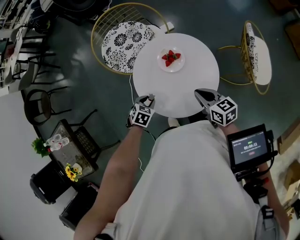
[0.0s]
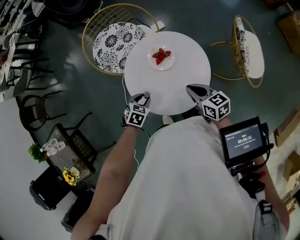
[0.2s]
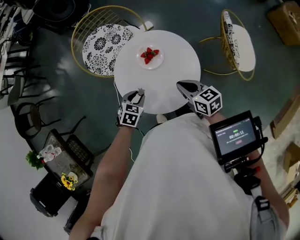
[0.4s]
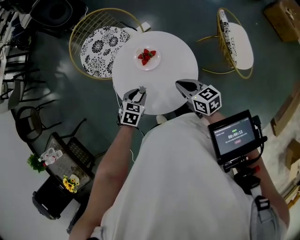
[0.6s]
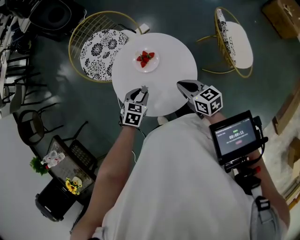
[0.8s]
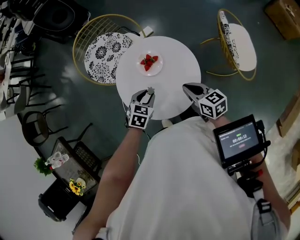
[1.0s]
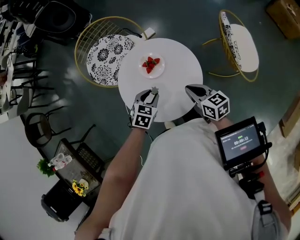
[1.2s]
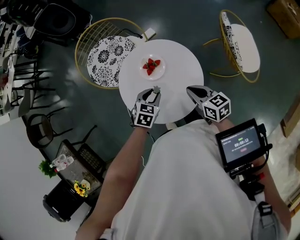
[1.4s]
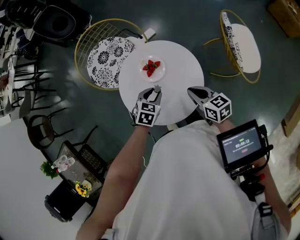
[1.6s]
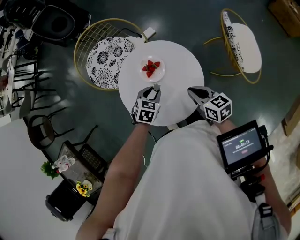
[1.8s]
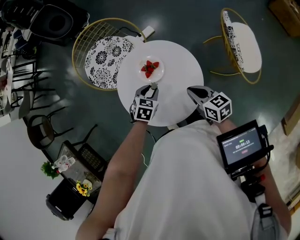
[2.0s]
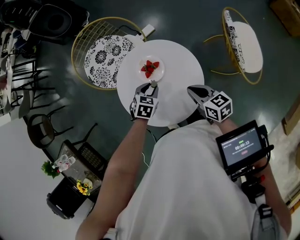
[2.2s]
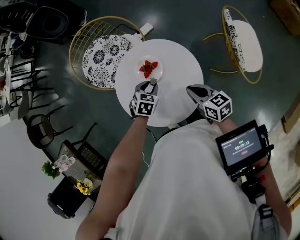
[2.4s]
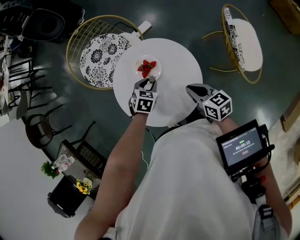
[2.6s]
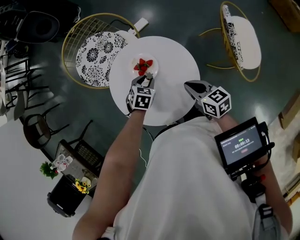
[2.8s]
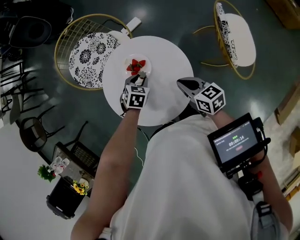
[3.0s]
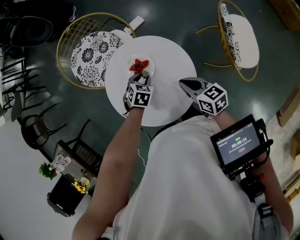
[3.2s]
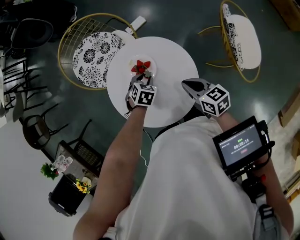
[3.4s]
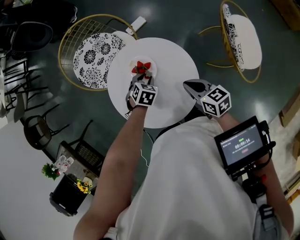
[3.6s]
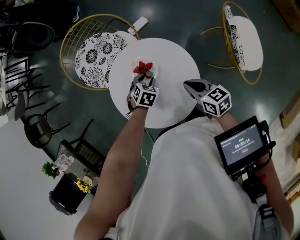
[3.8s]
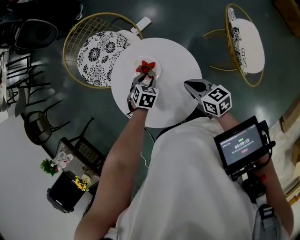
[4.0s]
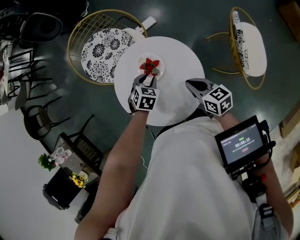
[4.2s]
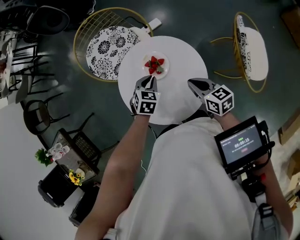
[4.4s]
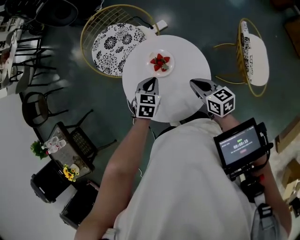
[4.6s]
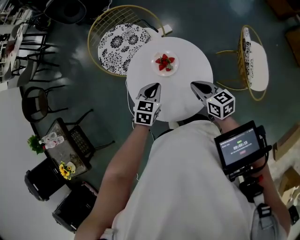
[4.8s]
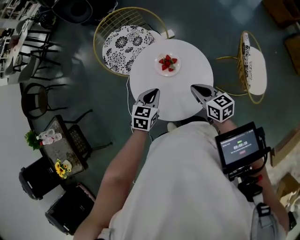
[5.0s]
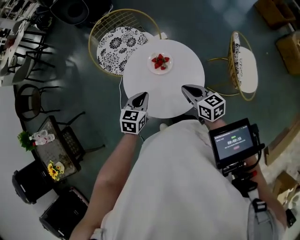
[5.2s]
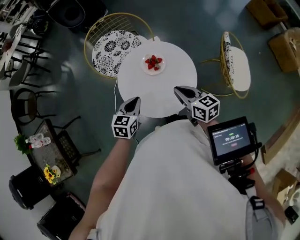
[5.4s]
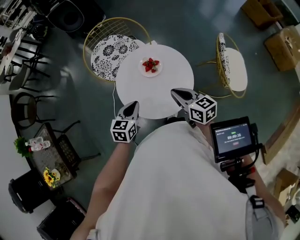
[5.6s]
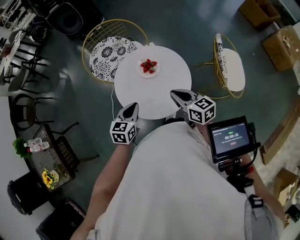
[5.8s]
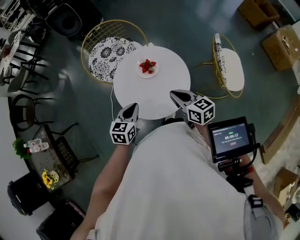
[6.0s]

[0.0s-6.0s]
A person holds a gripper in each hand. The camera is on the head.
0.0s to 1.6s: The left gripper travels to the right, forward and upward by about 15 cm.
1.6s to 3.0s: The left gripper is displaced forward and downward by roughly 10 cm; the right gripper shifts by about 5 cm.
3.0s to 4.4s: The left gripper is displaced upward by approximately 5 cm, and closes its fingers.
4.4s to 6.0s: The right gripper moves upward, backward and to the left, about 15 cm. The left gripper shifts about 20 cm backward, upward and to the left, and changes its angle by about 30 degrees.

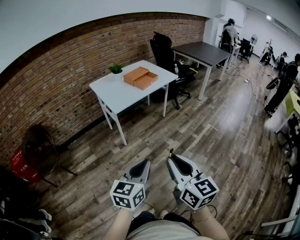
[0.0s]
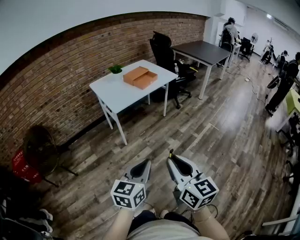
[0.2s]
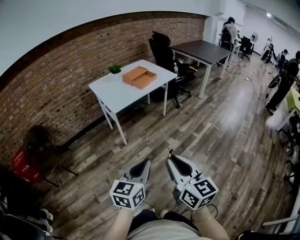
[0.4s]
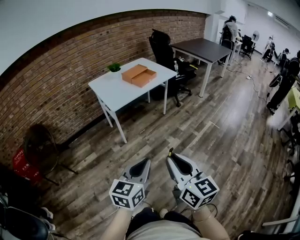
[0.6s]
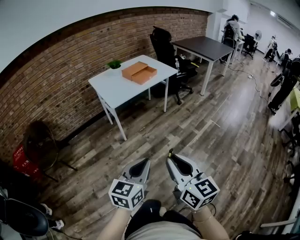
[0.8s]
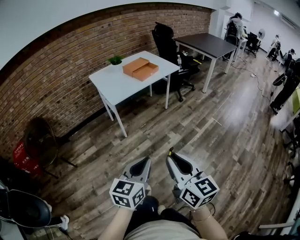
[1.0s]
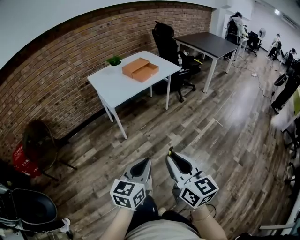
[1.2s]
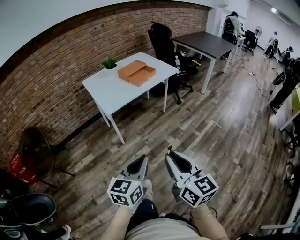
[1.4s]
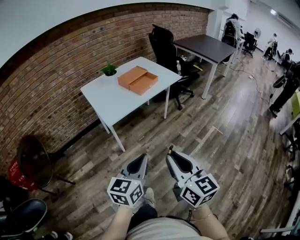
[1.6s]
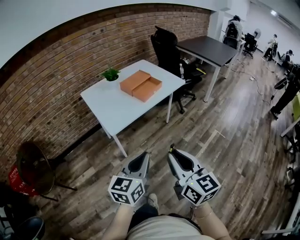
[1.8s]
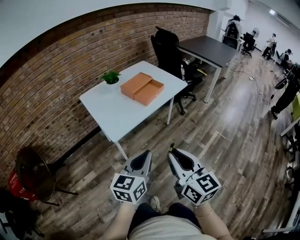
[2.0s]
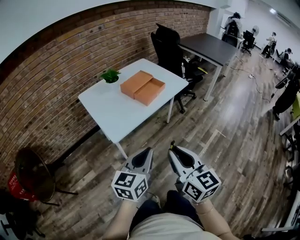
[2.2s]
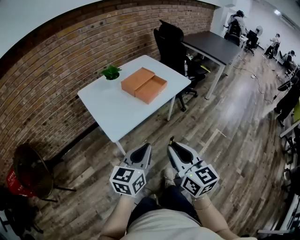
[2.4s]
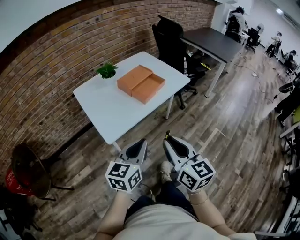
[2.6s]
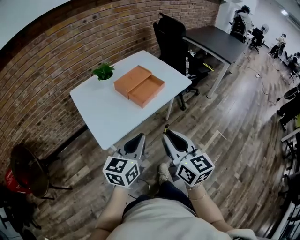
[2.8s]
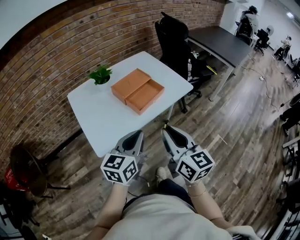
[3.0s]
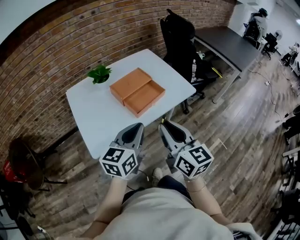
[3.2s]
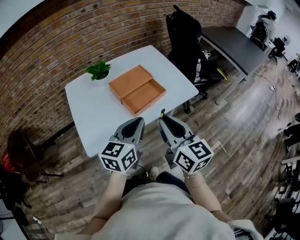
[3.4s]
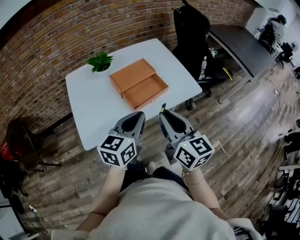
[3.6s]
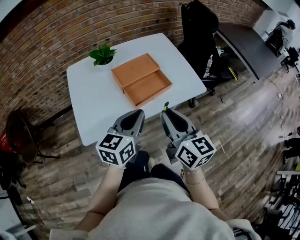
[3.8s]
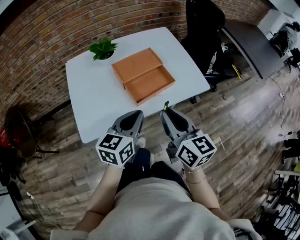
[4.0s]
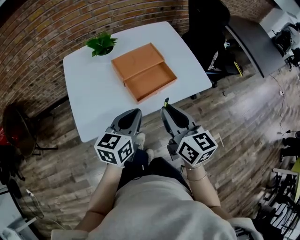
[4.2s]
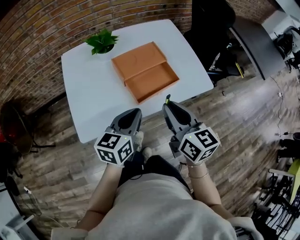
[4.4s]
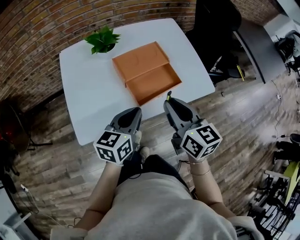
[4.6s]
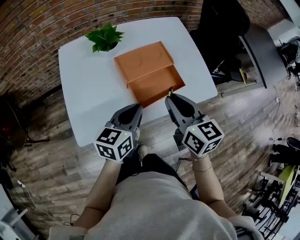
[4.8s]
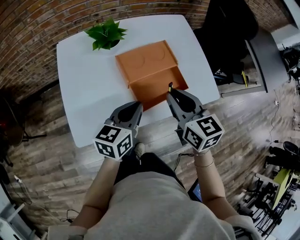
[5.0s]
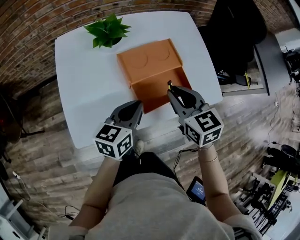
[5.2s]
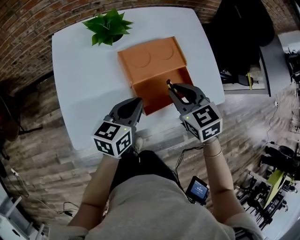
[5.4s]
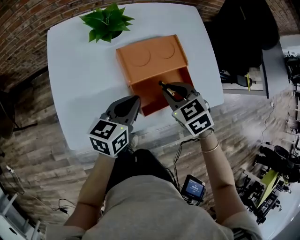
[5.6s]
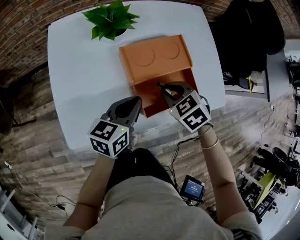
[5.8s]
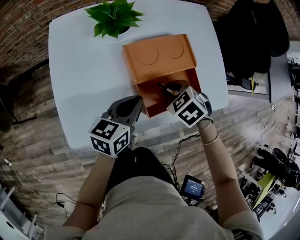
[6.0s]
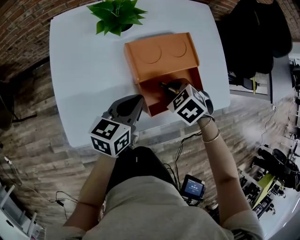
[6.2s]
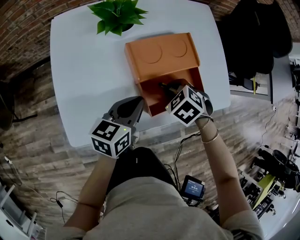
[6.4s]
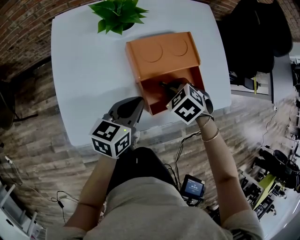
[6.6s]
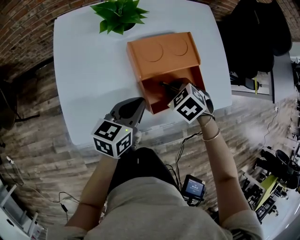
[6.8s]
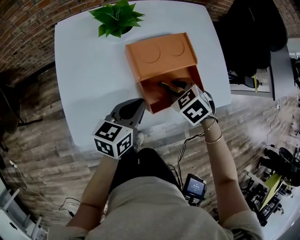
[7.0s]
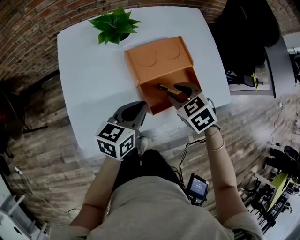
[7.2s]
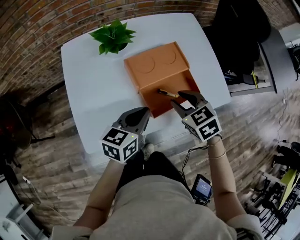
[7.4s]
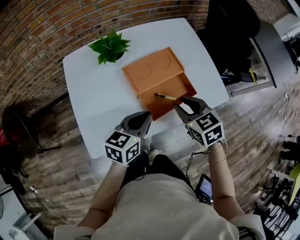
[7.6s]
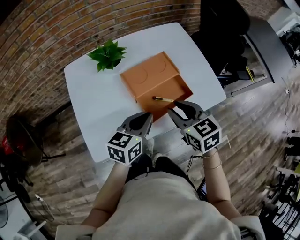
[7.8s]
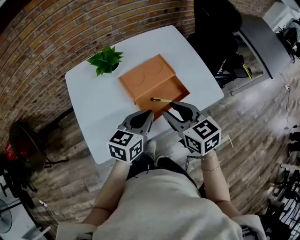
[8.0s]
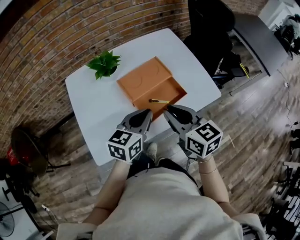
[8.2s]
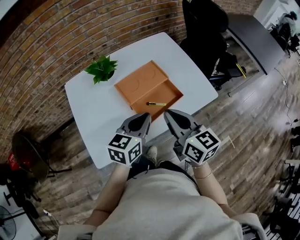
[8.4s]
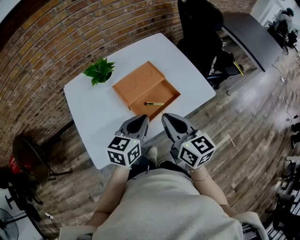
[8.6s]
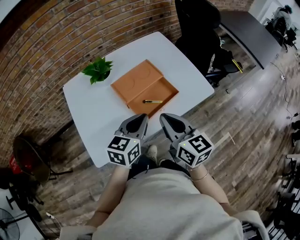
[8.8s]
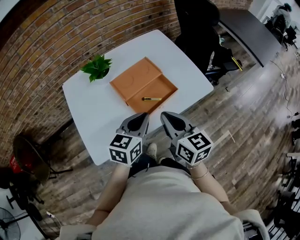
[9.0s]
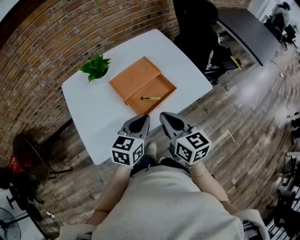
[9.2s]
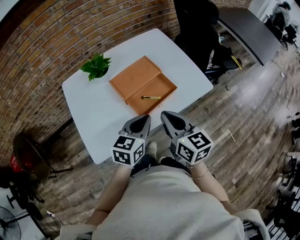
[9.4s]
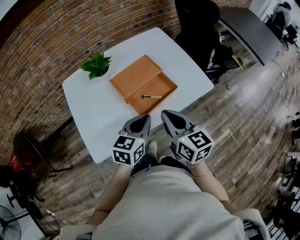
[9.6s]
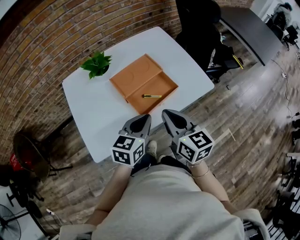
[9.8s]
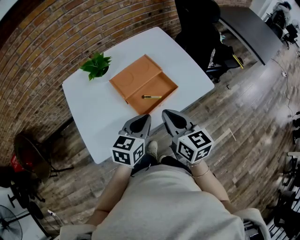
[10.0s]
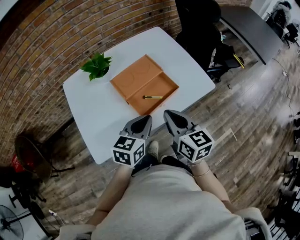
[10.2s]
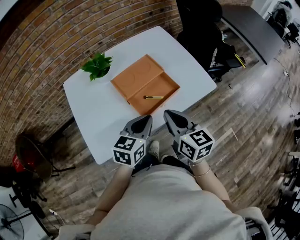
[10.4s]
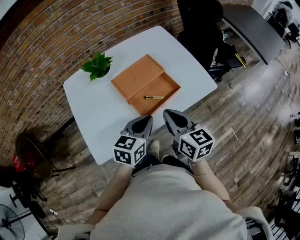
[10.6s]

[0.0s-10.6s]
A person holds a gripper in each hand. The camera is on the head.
0.0s to 1.6s: The grippers both shift forward by approximately 20 cm.
1.6s to 3.0s: The two grippers go roughly 40 cm forward.
3.0s to 4.6s: The left gripper goes some 20 cm forward and downward, while the right gripper travels forward by approximately 20 cm, and changes its angle by about 20 degrees.
4.6s to 6.0s: The left gripper travels forward and downward by approximately 15 cm. The right gripper heads downward and forward, covering about 25 cm, and tips its fingers downward by about 50 degrees.
6.0s to 7.6s: The left gripper shifts roughly 5 cm upward, while the right gripper travels upward by approximately 10 cm, and turns by about 40 degrees.
7.6s to 9.0s: The left gripper travels to the right by some 5 cm; the right gripper is displaced backward and upward by approximately 10 cm, swivels about 40 degrees, and closes.
9.0s to 10.6s: The grippers move only a little.

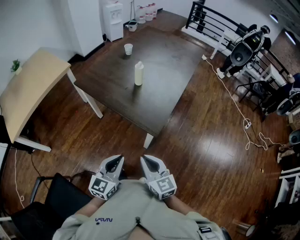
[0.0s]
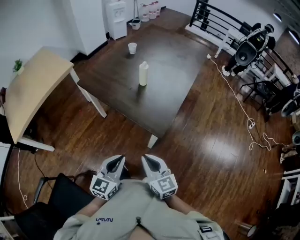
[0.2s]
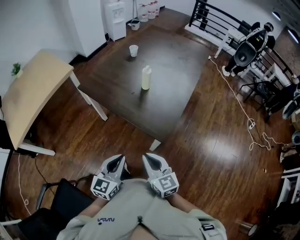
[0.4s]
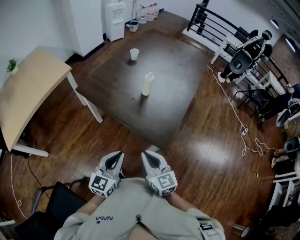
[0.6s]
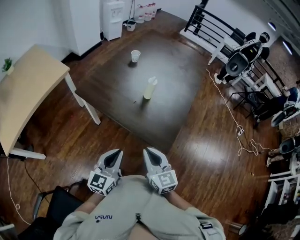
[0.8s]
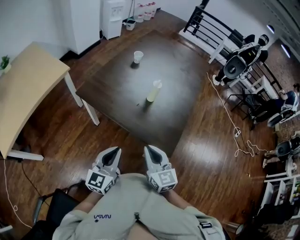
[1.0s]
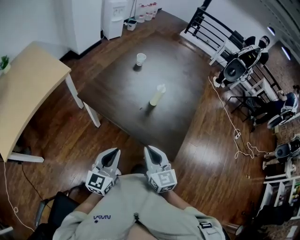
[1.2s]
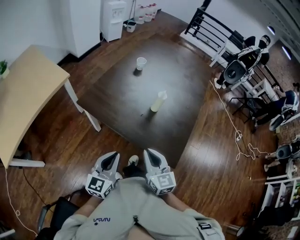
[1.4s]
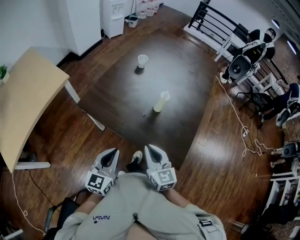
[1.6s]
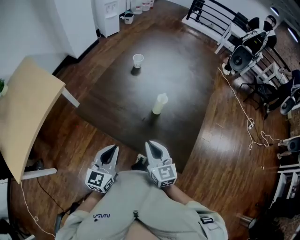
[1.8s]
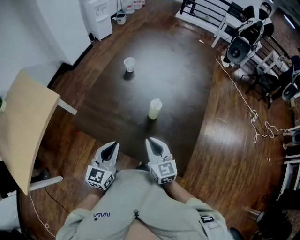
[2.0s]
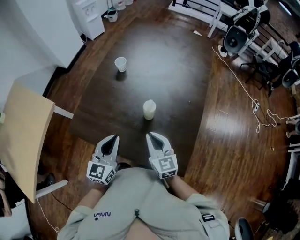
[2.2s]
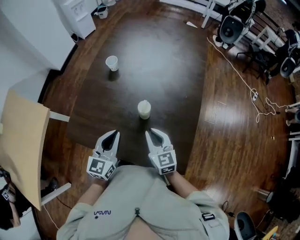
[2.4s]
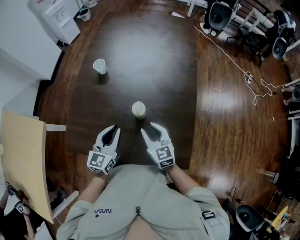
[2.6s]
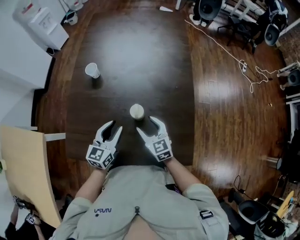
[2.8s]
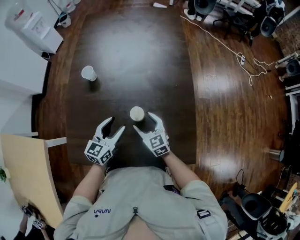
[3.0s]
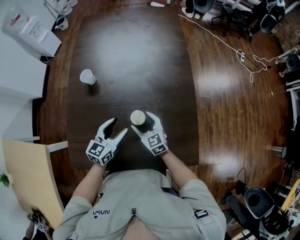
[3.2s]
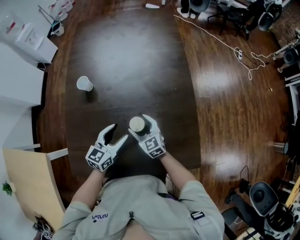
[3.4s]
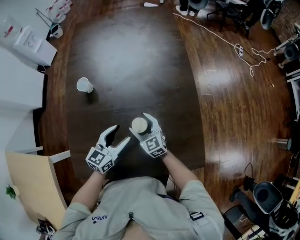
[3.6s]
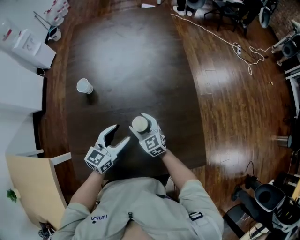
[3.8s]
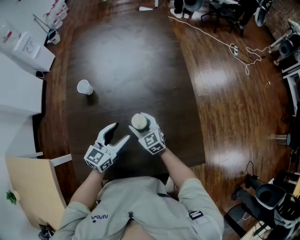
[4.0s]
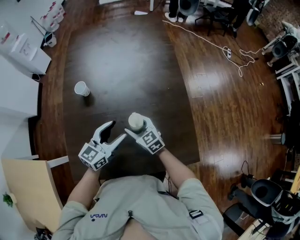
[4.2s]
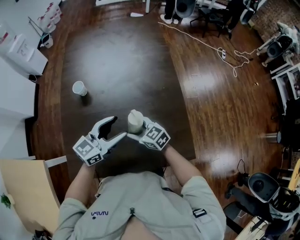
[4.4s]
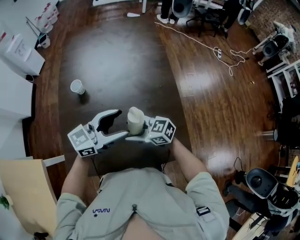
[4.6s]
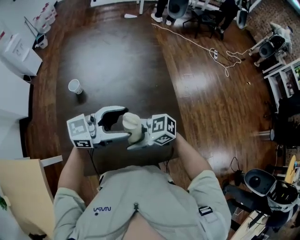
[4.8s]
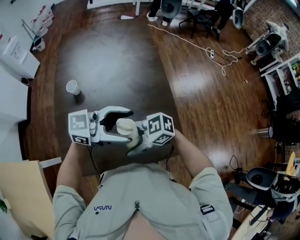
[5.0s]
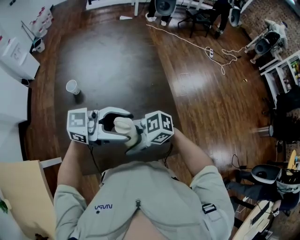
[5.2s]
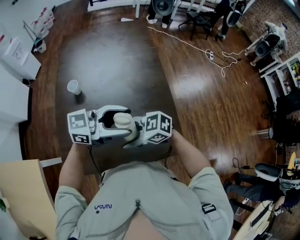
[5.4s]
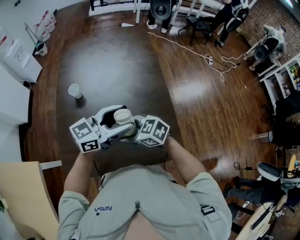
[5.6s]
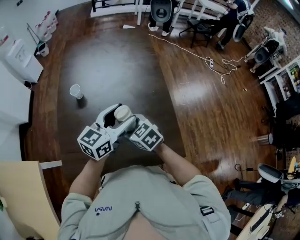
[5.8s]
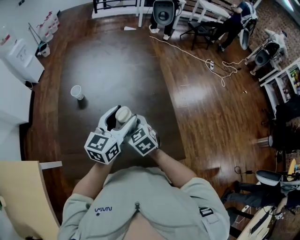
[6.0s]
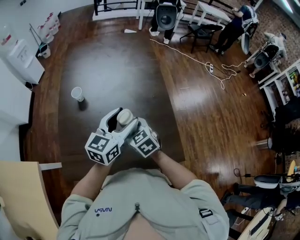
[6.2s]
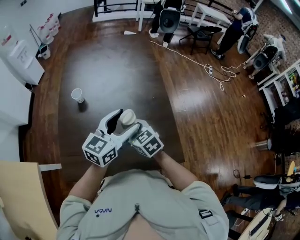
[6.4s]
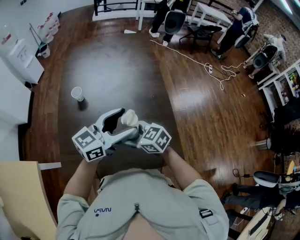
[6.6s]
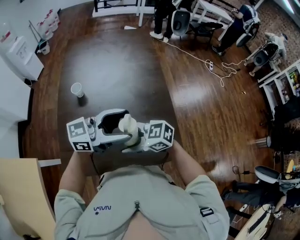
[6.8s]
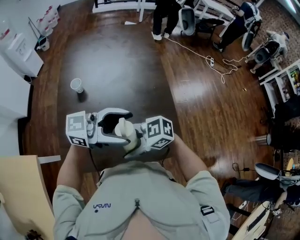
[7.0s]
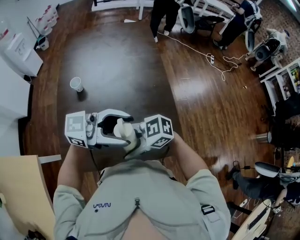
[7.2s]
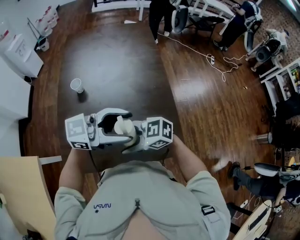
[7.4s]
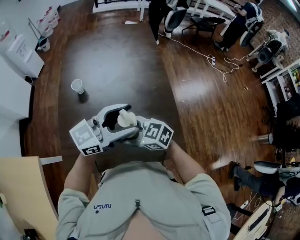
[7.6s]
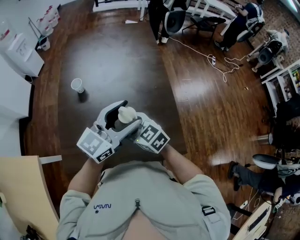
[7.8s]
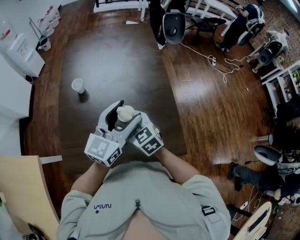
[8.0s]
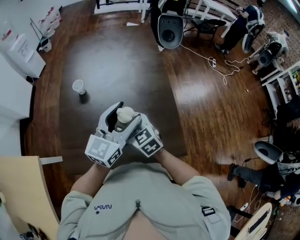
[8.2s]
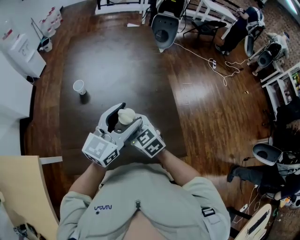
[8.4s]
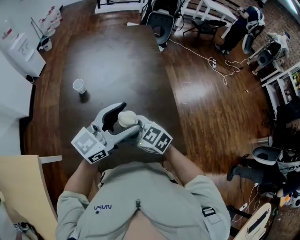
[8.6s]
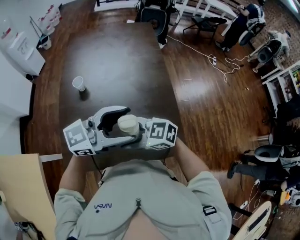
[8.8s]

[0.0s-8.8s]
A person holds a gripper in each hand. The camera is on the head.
0.0s to 1.4s: Both grippers travel together forward and to the left, roughly 20 cm.
1.4s to 3.0s: The right gripper changes place by about 30 cm, and opens its fingers, while the left gripper shifts by approximately 30 cm, swivels some 40 degrees, and opens its fingers.
3.0s to 4.4s: The left gripper heads upward, covering roughly 10 cm, and changes its angle by some 30 degrees. Meanwhile the right gripper moves some 5 cm.
4.4s to 5.8s: The two grippers go about 5 cm upward.
5.8s to 7.4s: The right gripper changes place by approximately 10 cm, and changes its angle by about 40 degrees. The left gripper shifts by roughly 10 cm, and rotates about 40 degrees.
